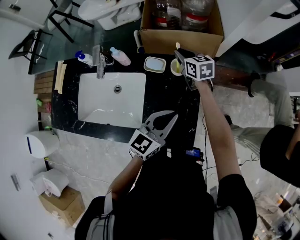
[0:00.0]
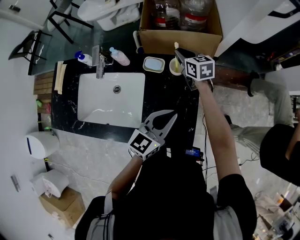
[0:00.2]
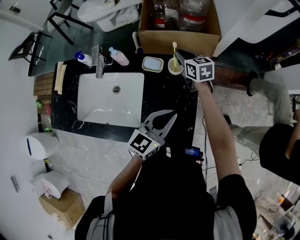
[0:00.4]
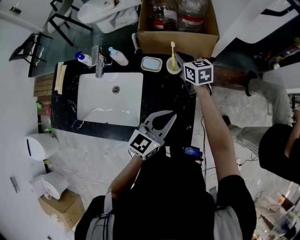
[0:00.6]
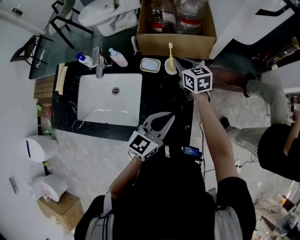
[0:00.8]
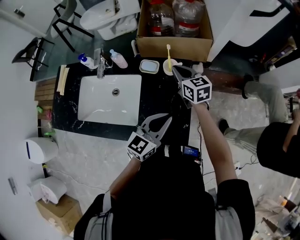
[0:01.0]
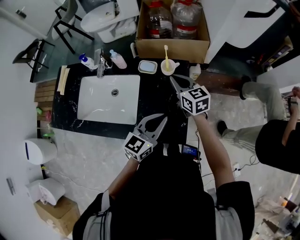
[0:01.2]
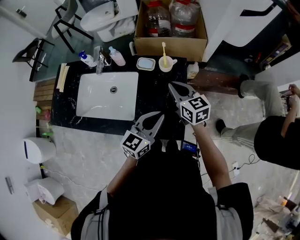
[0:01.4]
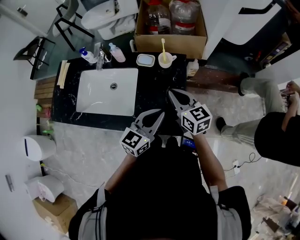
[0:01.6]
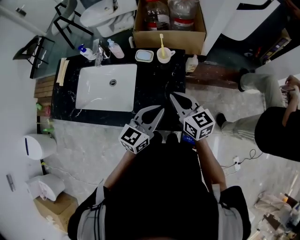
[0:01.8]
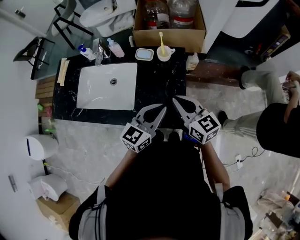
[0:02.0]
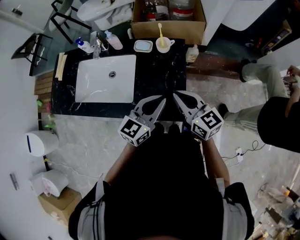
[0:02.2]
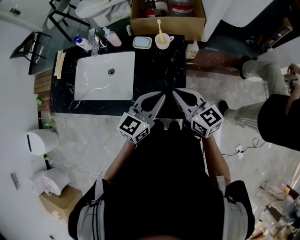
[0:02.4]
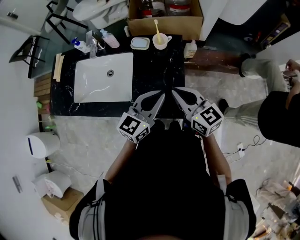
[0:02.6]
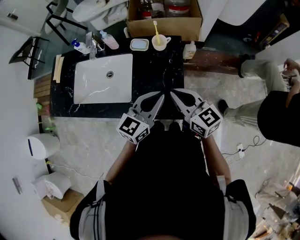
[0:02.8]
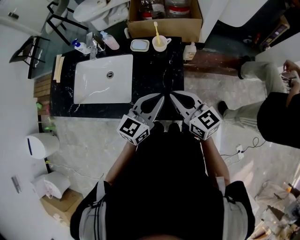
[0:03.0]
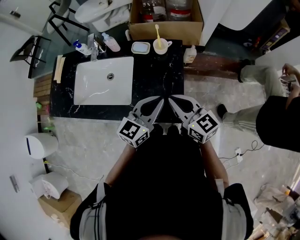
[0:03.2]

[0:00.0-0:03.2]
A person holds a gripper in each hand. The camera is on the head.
0:00.0 to 0:01.6: The right gripper goes roughly 30 cm backward, while the left gripper heads backward, covering approximately 10 cm.
0:01.6 to 0:03.2: The right gripper shifts some 10 cm backward.

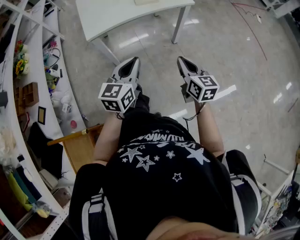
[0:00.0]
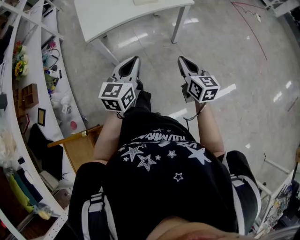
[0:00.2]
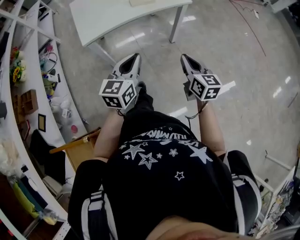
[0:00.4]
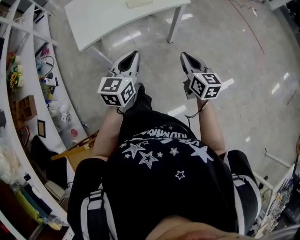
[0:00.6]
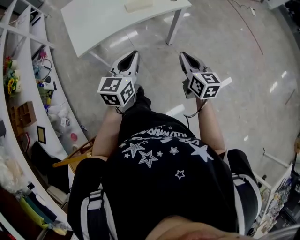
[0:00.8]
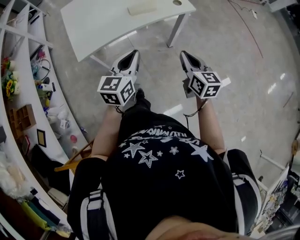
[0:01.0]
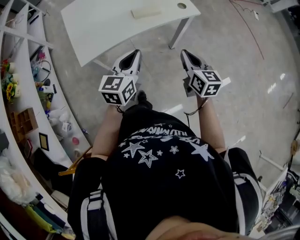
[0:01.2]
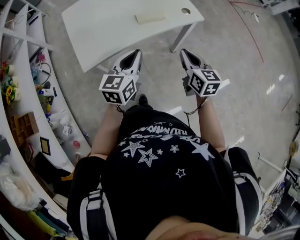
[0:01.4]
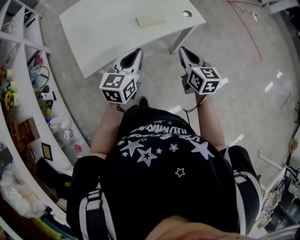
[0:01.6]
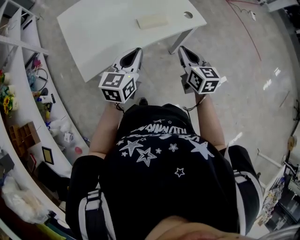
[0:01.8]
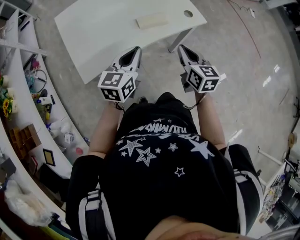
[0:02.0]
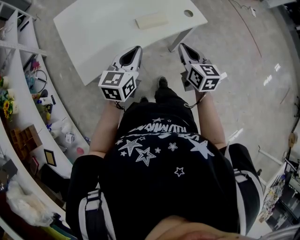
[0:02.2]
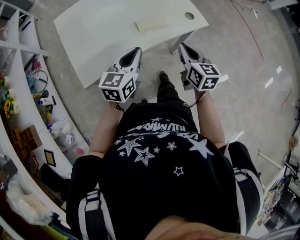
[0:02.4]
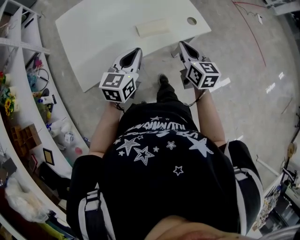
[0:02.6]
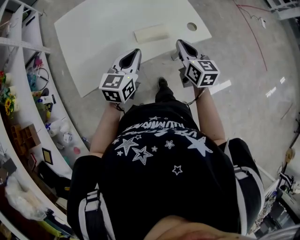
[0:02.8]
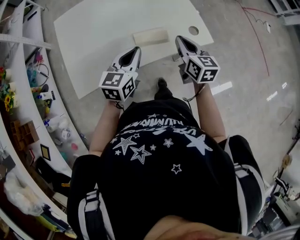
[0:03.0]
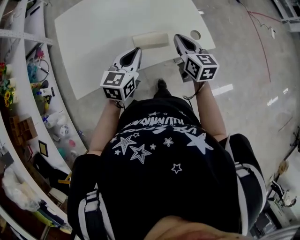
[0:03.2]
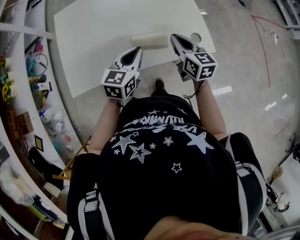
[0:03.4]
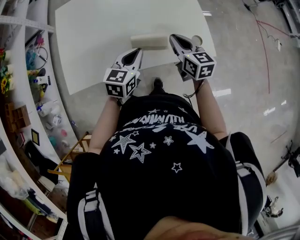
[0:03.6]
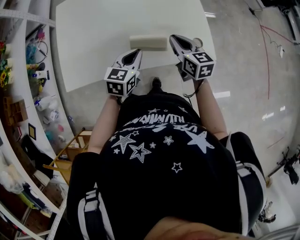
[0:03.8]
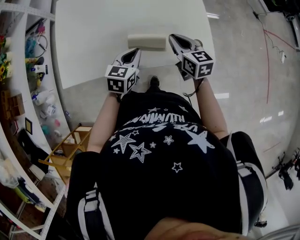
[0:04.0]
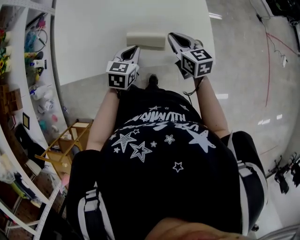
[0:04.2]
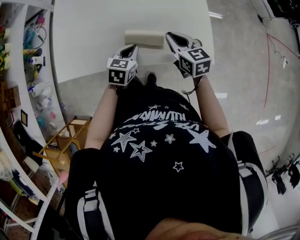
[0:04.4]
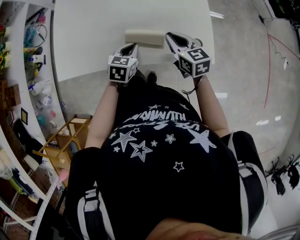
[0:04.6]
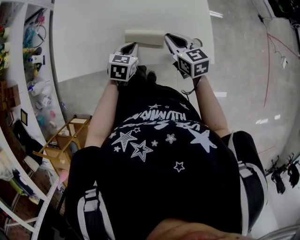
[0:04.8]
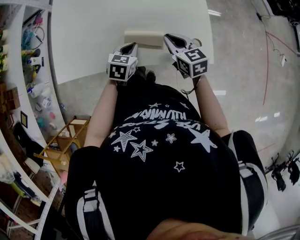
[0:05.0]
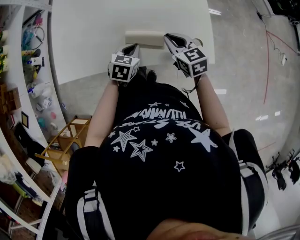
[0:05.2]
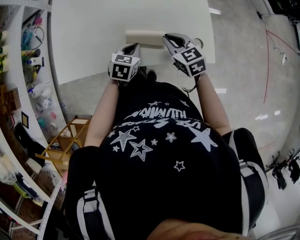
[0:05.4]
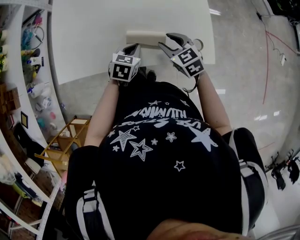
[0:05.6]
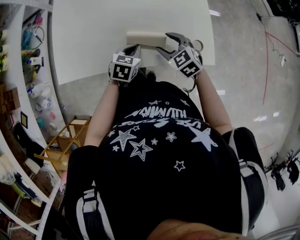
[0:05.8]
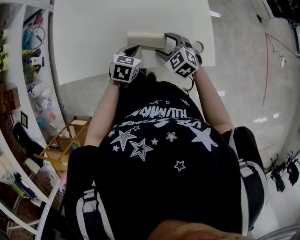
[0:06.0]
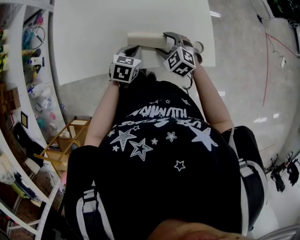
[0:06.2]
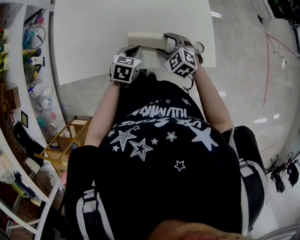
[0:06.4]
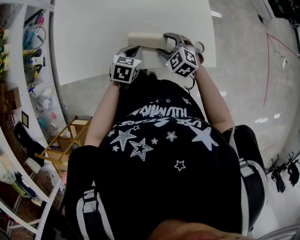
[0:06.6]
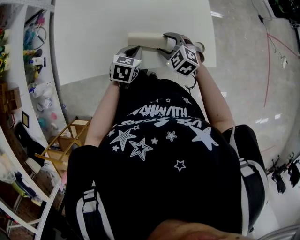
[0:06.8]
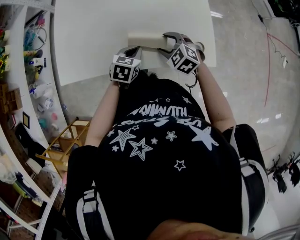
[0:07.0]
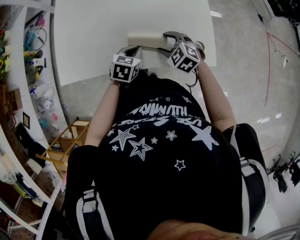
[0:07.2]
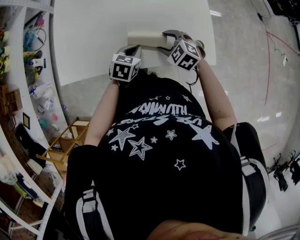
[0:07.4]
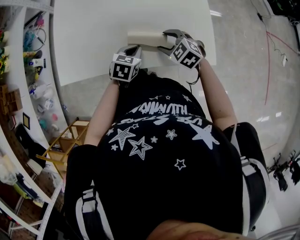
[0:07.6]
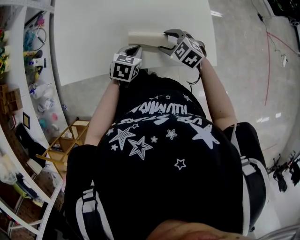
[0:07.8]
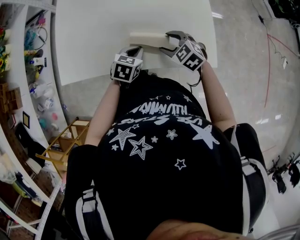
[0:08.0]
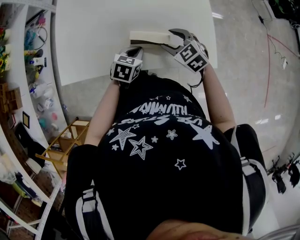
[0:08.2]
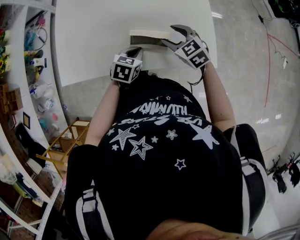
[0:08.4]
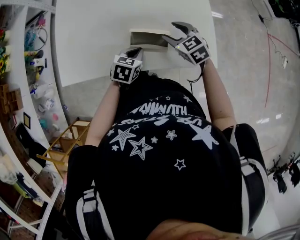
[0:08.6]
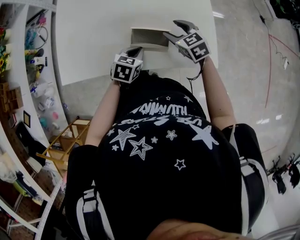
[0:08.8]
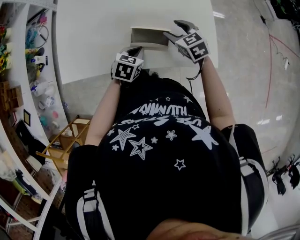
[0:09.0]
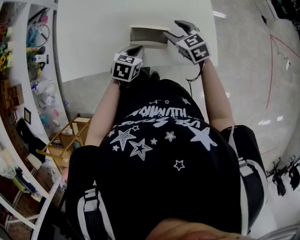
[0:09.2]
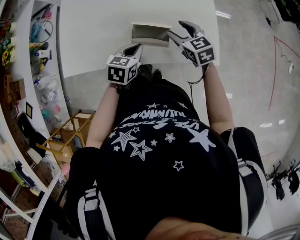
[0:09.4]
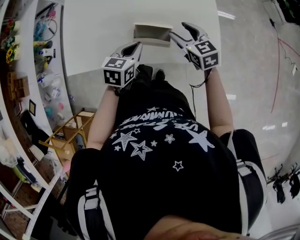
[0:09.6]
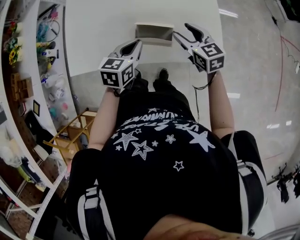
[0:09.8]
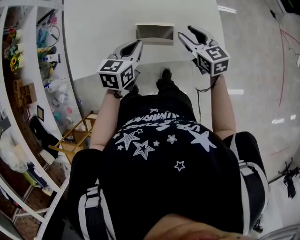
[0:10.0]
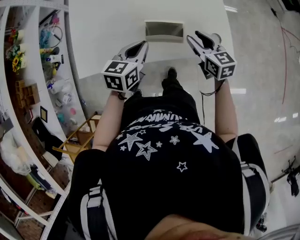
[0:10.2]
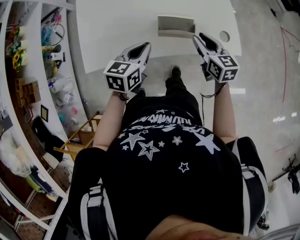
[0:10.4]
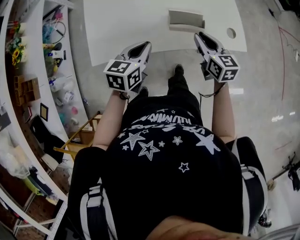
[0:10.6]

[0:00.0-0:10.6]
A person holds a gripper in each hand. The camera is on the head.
0:00.0 to 0:01.6: Both grippers move forward, about 30 cm.
0:01.6 to 0:03.0: The grippers both shift forward by some 20 cm.
0:03.0 to 0:04.6: Both grippers travel together downward and forward, some 15 cm. The right gripper turns by roughly 30 degrees; the left gripper changes its angle by about 30 degrees.
0:04.6 to 0:06.0: The right gripper heads downward, covering approximately 5 cm, changes its angle by approximately 40 degrees, and opens up.
0:06.0 to 0:07.6: The grippers make only small movements.
0:07.6 to 0:09.0: The right gripper shifts about 5 cm forward, and changes its angle by approximately 20 degrees.
0:09.0 to 0:10.6: The right gripper moves backward, to the left and upward, roughly 15 cm, rotates roughly 30 degrees, and closes up; the left gripper shifts about 20 cm to the left, upward and backward, and swivels approximately 20 degrees.

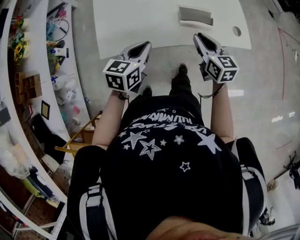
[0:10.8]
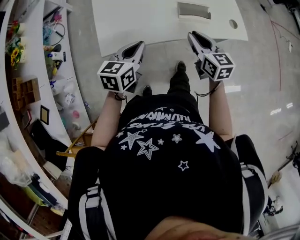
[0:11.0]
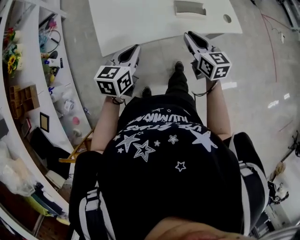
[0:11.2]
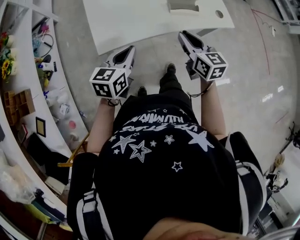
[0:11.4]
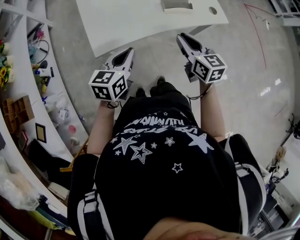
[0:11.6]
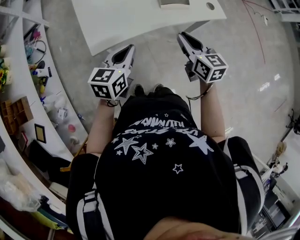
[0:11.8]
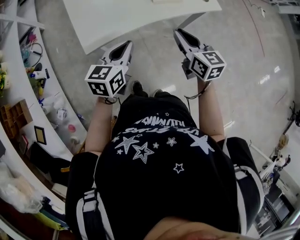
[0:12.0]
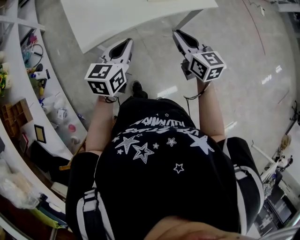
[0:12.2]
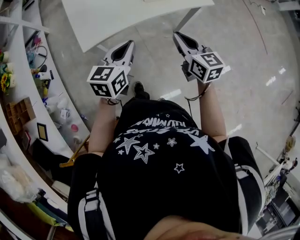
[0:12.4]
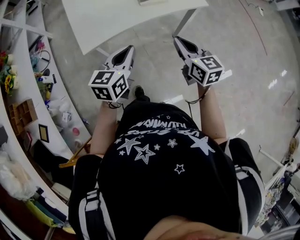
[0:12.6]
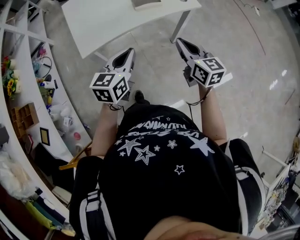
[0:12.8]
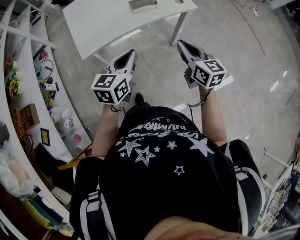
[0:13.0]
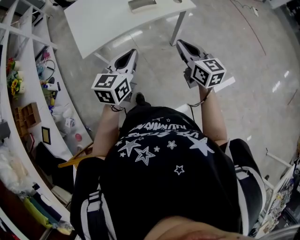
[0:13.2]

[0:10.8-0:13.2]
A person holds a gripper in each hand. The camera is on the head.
0:10.8 to 0:12.0: The two grippers go some 10 cm backward.
0:12.0 to 0:13.2: The right gripper shifts roughly 20 cm backward, to the right and upward, while the left gripper travels to the right, backward and upward by about 20 cm.

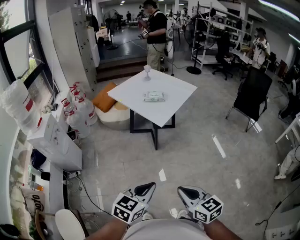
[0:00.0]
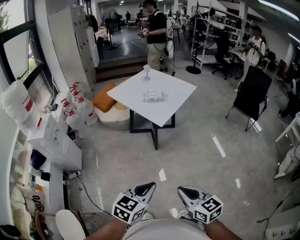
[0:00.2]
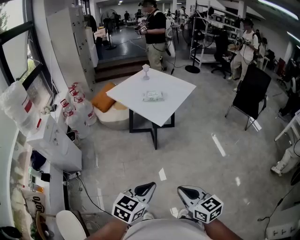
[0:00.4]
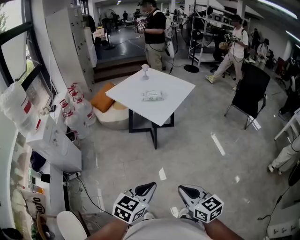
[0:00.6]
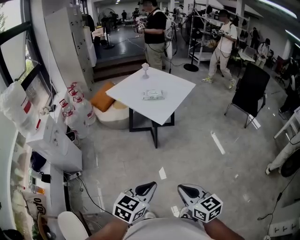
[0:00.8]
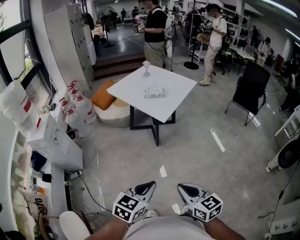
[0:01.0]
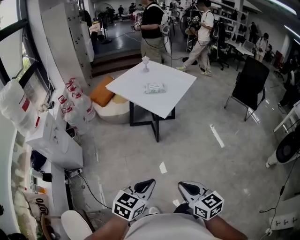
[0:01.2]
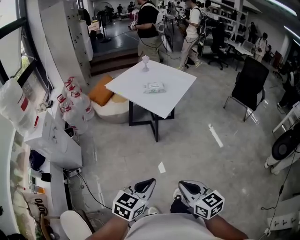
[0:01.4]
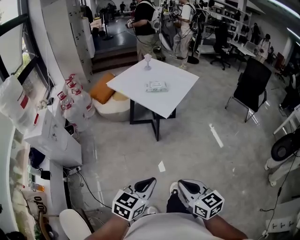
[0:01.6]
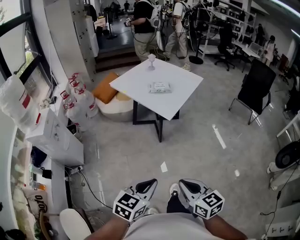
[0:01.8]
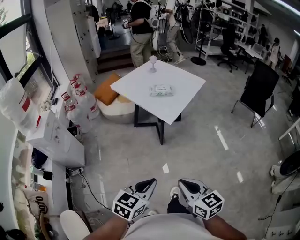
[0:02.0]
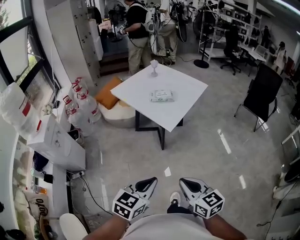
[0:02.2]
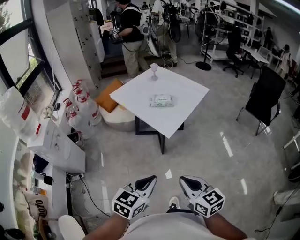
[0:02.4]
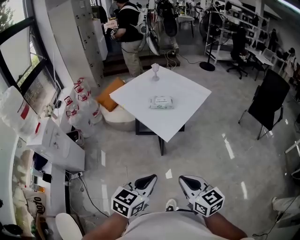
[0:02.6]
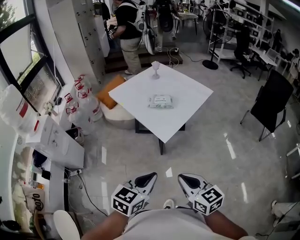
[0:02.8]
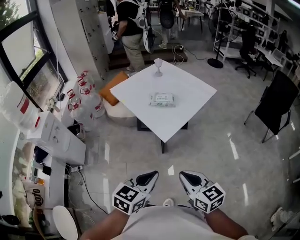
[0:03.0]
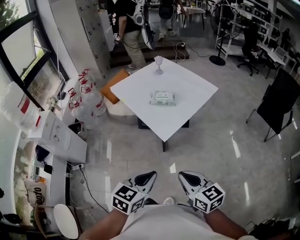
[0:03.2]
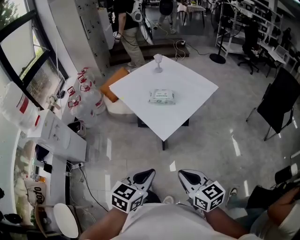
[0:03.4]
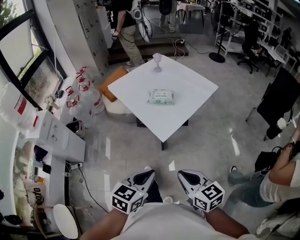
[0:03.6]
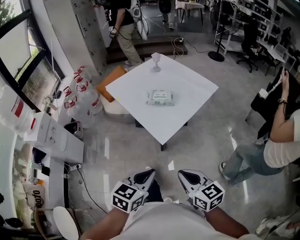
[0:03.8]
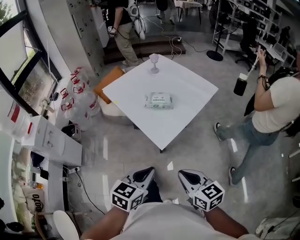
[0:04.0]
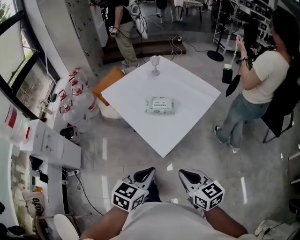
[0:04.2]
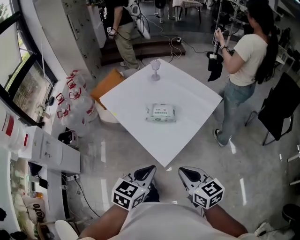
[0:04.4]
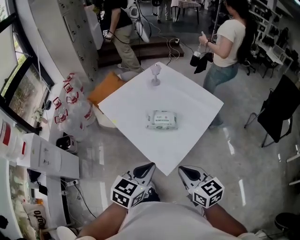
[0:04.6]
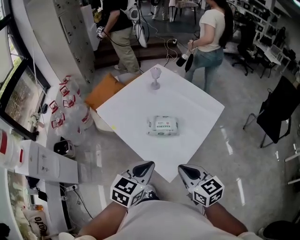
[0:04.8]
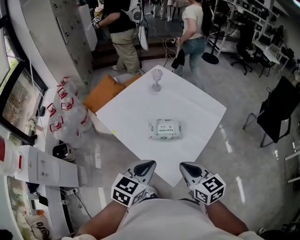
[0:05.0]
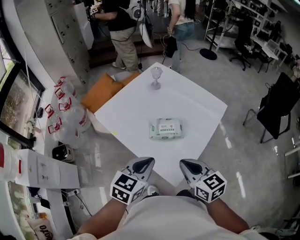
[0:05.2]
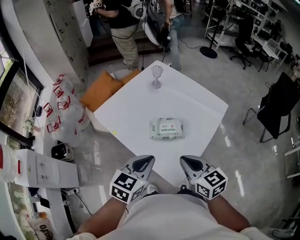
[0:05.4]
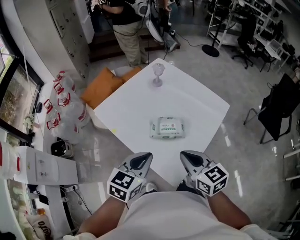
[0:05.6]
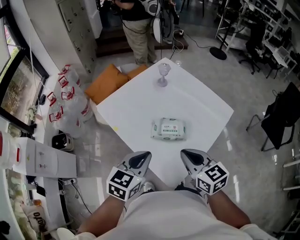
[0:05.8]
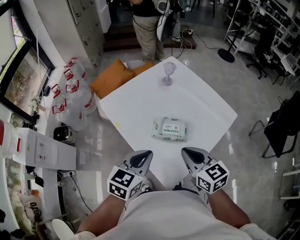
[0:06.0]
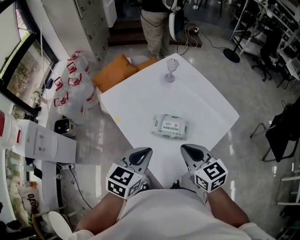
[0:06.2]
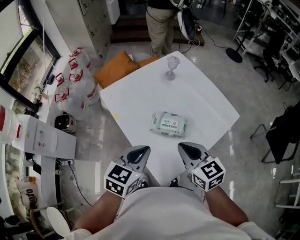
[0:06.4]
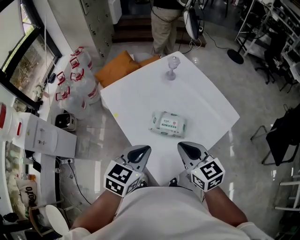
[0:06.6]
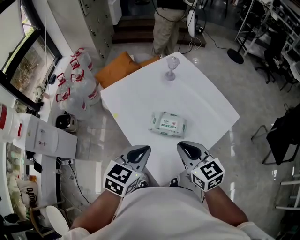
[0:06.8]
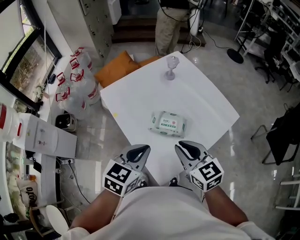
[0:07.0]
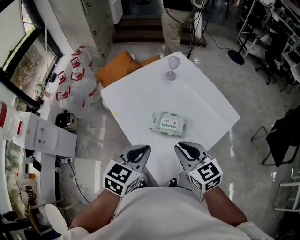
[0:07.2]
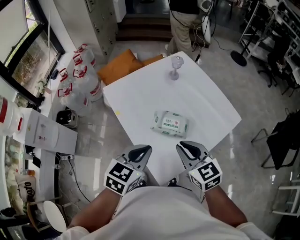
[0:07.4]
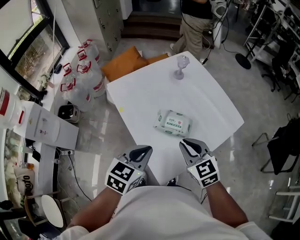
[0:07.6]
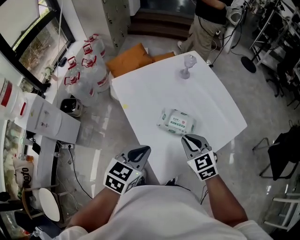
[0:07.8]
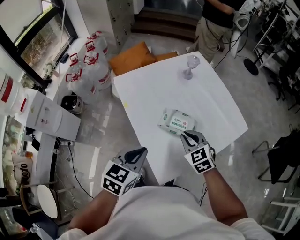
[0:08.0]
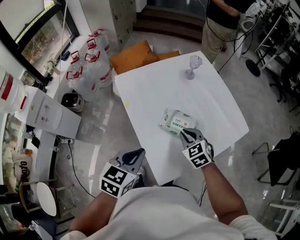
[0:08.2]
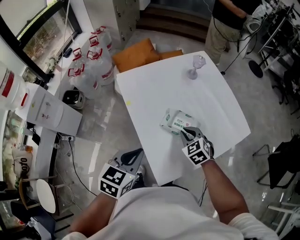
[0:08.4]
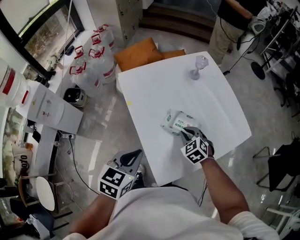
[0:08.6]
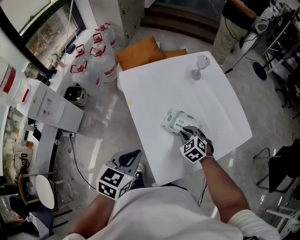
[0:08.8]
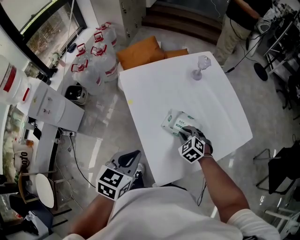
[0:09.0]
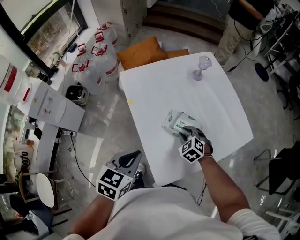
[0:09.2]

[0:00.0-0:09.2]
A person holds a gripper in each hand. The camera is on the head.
0:00.0 to 0:01.6: Both grippers travel together to the left, about 5 cm.
0:01.6 to 0:03.0: Both grippers travel together forward and to the right, approximately 30 cm.
0:03.0 to 0:04.6: The grippers both shift forward by approximately 30 cm.
0:04.6 to 0:06.2: The grippers both shift forward by about 15 cm.
0:06.2 to 0:07.6: The grippers move only a little.
0:07.6 to 0:09.2: The right gripper goes some 20 cm downward and forward, and swivels some 40 degrees; the left gripper moves to the left, some 5 cm.
